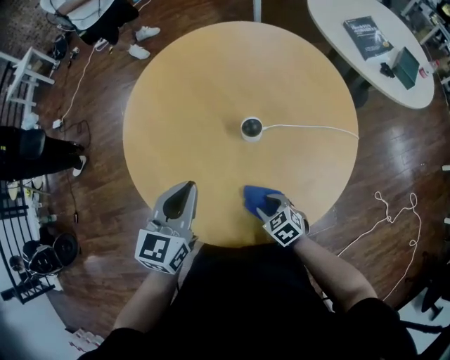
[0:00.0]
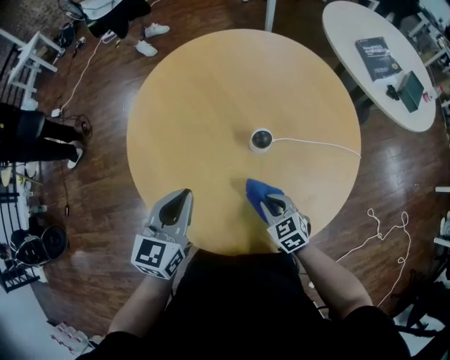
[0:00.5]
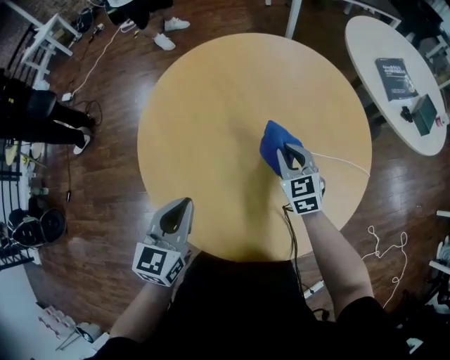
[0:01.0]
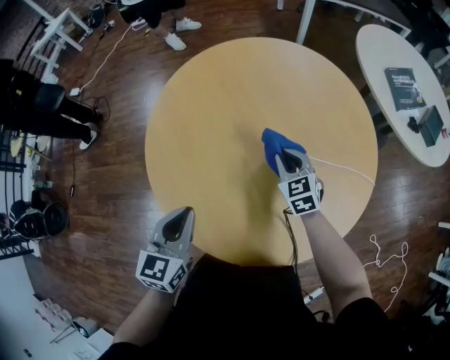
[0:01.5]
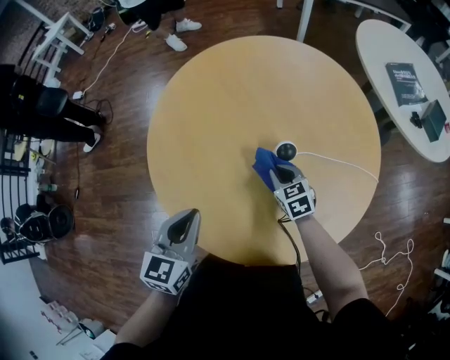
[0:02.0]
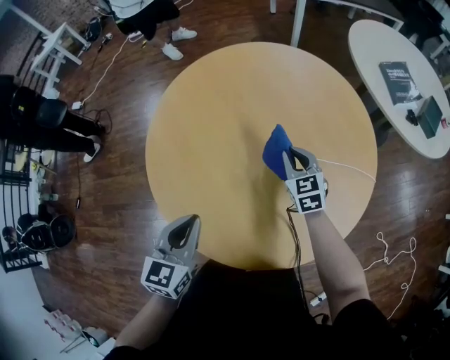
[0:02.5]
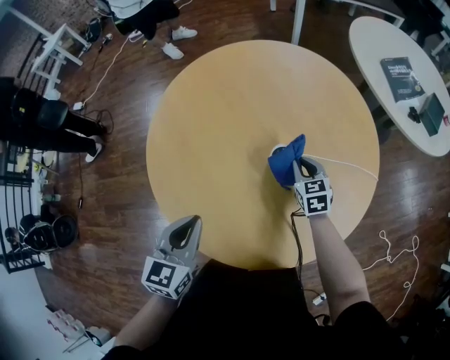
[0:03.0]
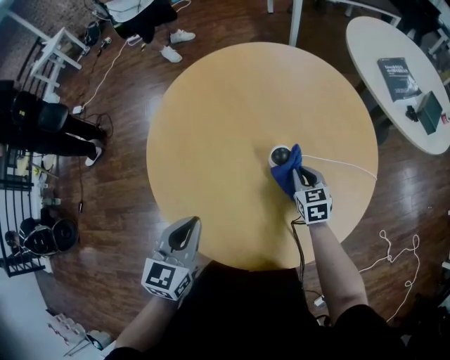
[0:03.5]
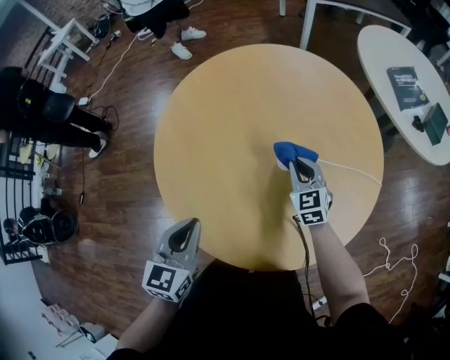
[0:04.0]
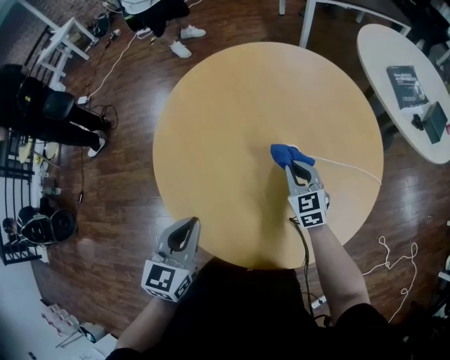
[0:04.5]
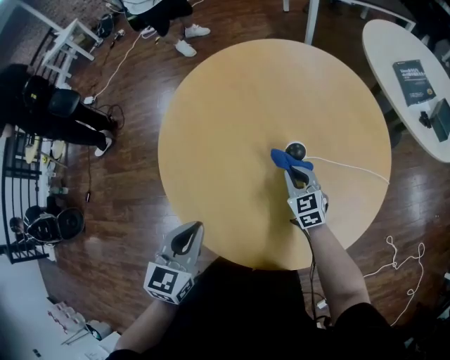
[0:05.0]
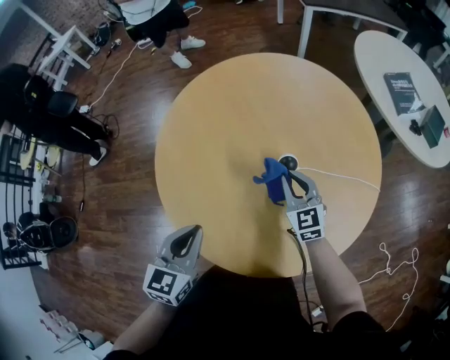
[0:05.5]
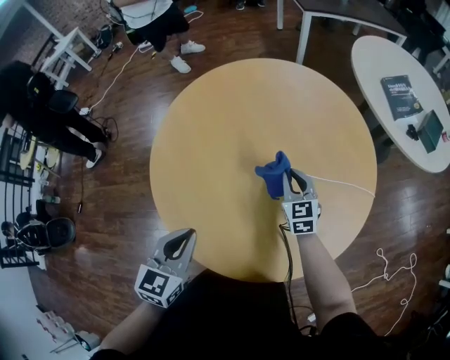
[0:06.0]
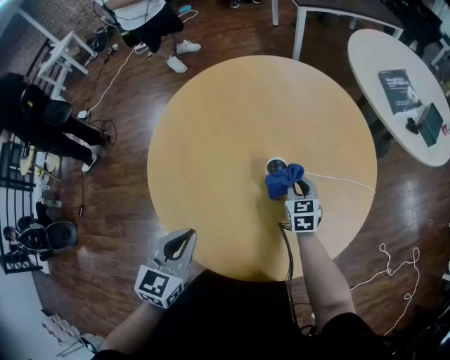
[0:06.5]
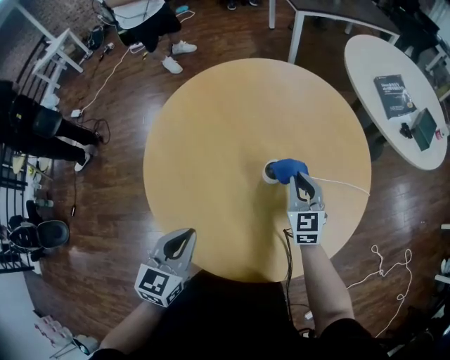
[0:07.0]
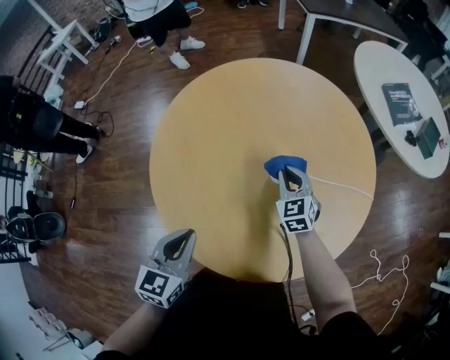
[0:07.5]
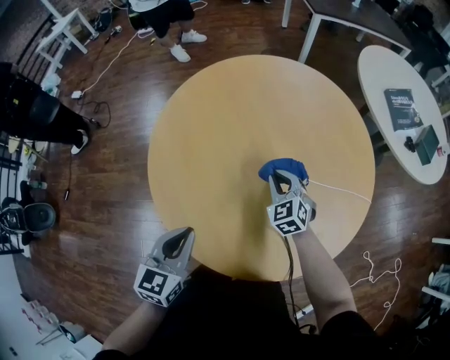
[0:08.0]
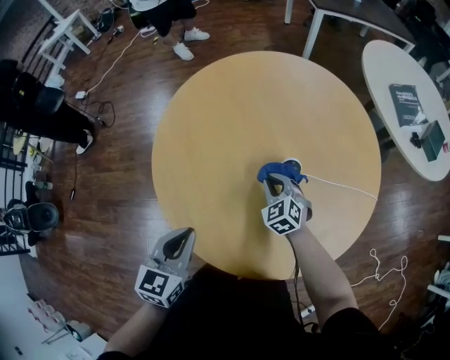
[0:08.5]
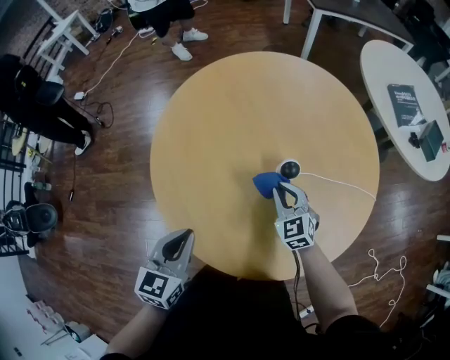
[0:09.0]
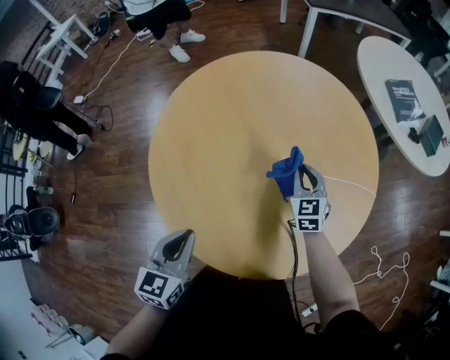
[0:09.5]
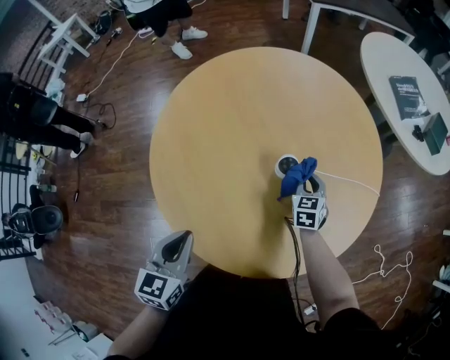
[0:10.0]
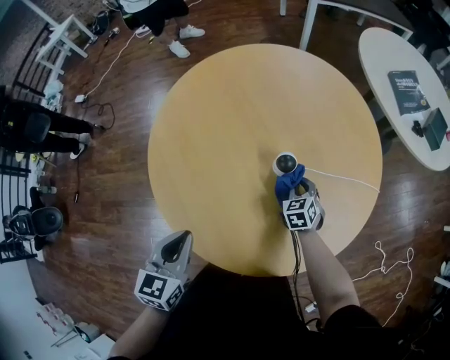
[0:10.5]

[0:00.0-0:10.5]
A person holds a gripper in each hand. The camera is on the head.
0:00.0 to 0:02.0: The left gripper travels to the left by about 5 cm. The right gripper shifts some 20 cm forward, and closes.
0:02.0 to 0:04.0: The right gripper is displaced upward by about 5 cm, and changes its angle by some 20 degrees.
0:04.0 to 0:06.5: The right gripper goes up and down, roughly 10 cm each way, reversing 2 times.
0:06.5 to 0:08.5: The right gripper moves to the left, approximately 10 cm, and turns by roughly 40 degrees.
0:08.5 to 0:10.5: The right gripper heads to the right and downward, covering about 15 cm, and changes its angle by approximately 30 degrees.

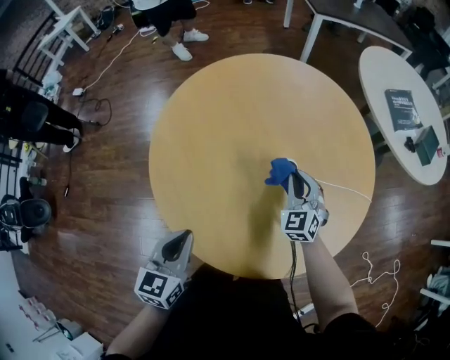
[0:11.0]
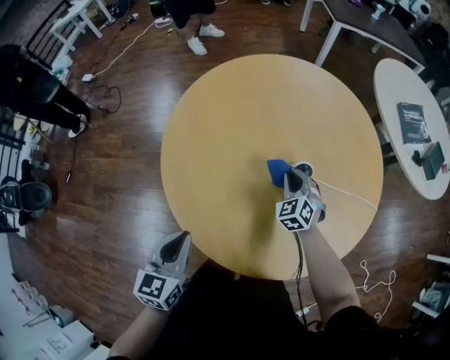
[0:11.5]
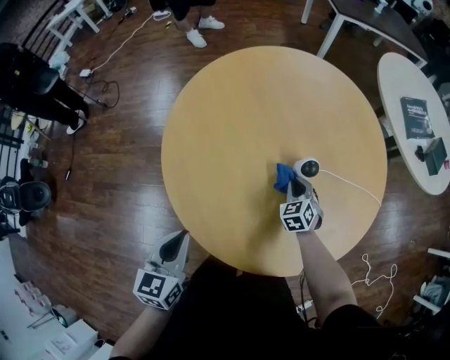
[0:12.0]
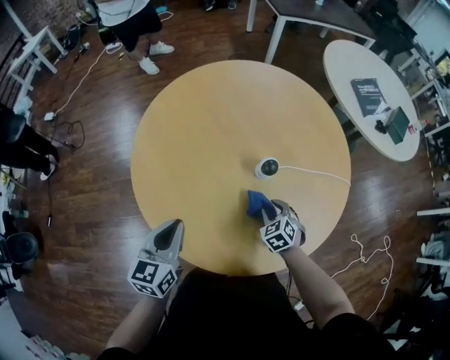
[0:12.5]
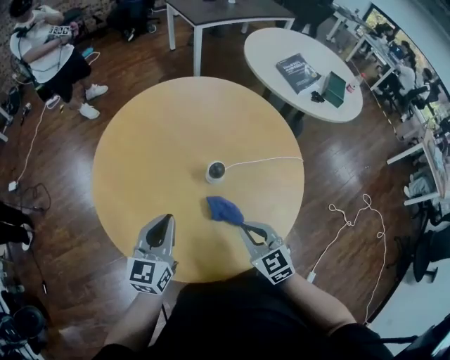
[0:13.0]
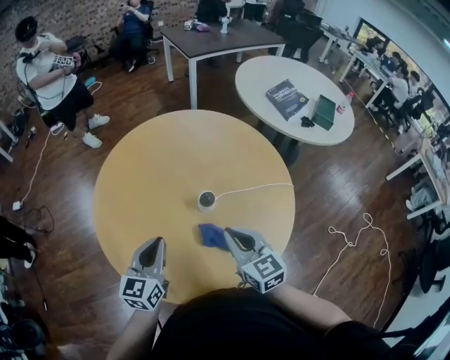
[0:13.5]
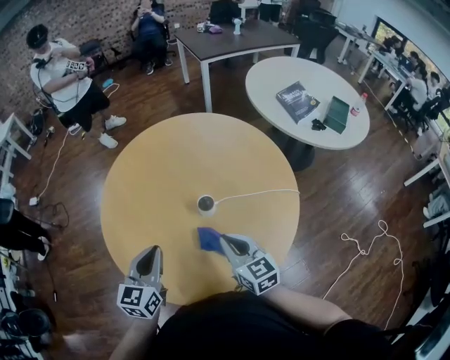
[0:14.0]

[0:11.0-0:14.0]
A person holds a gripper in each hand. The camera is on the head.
0:11.0 to 0:12.5: The right gripper is displaced downward and backward by some 15 cm, points its fingers roughly 30 degrees further downward, and opens up; the left gripper moves approximately 5 cm.
0:12.5 to 0:14.0: The right gripper goes roughly 20 cm upward, points its fingers some 40 degrees further upward, and closes its fingers. Meanwhile the left gripper goes about 10 cm to the right and forward.

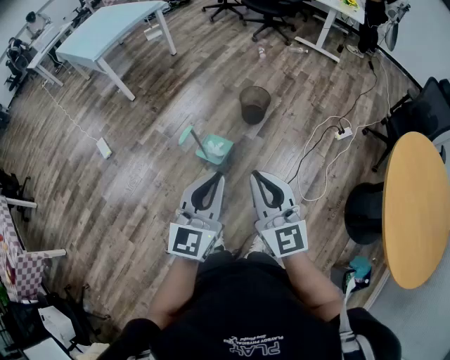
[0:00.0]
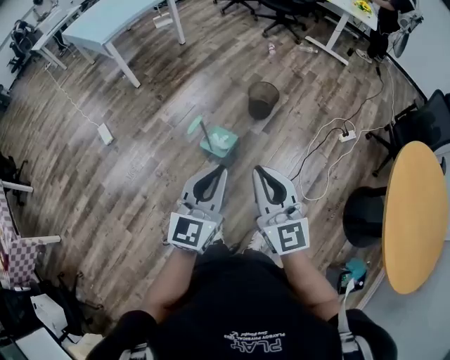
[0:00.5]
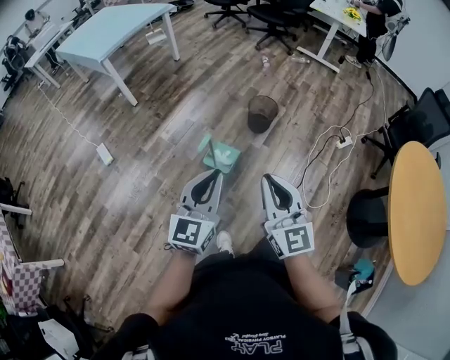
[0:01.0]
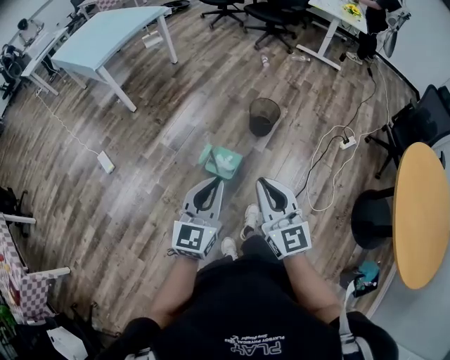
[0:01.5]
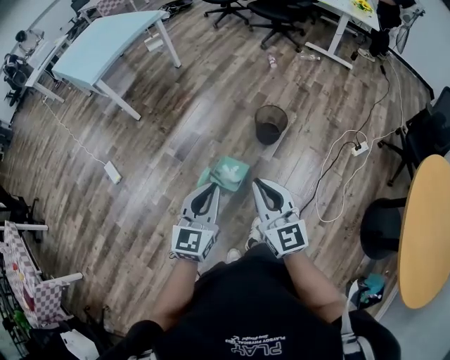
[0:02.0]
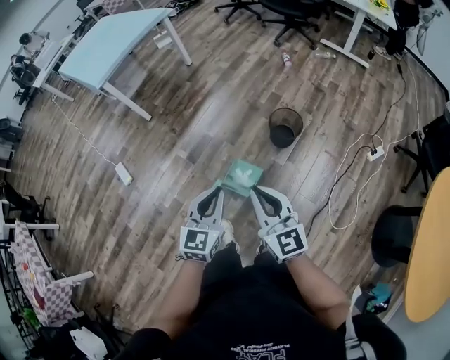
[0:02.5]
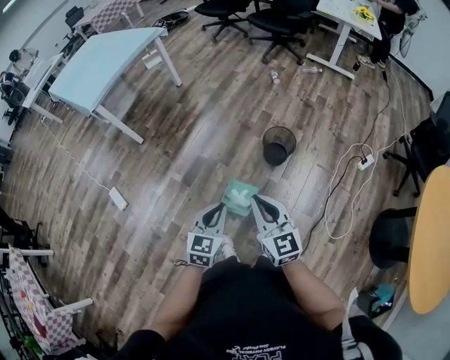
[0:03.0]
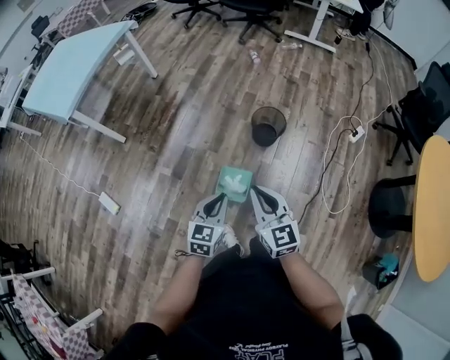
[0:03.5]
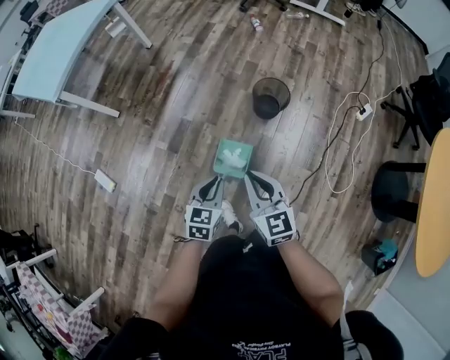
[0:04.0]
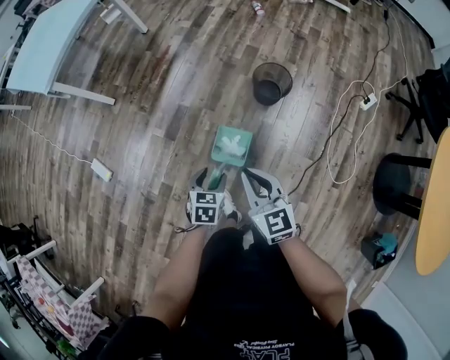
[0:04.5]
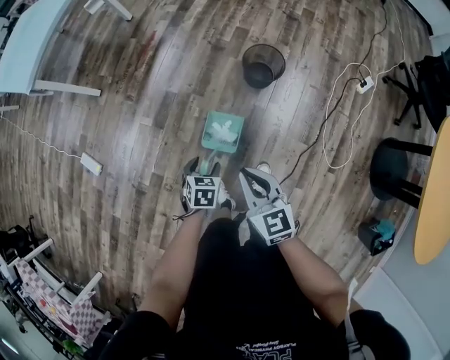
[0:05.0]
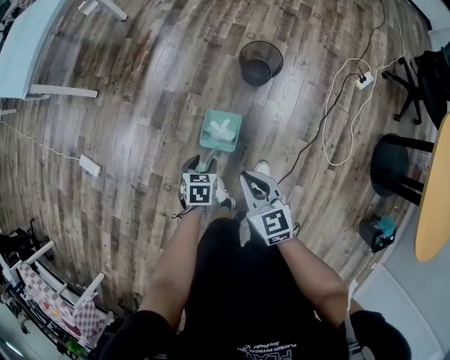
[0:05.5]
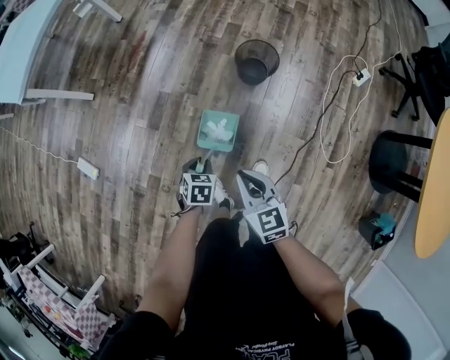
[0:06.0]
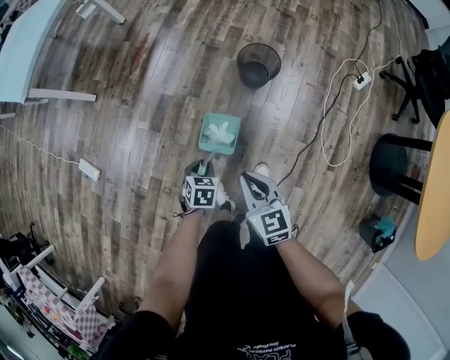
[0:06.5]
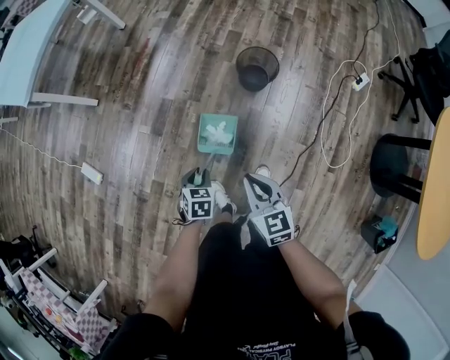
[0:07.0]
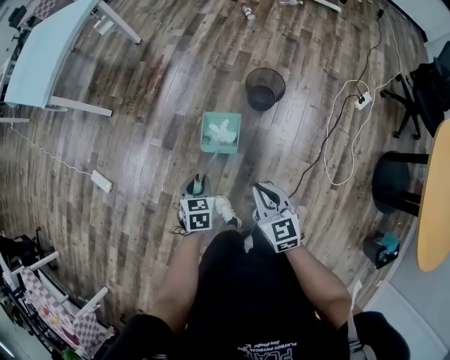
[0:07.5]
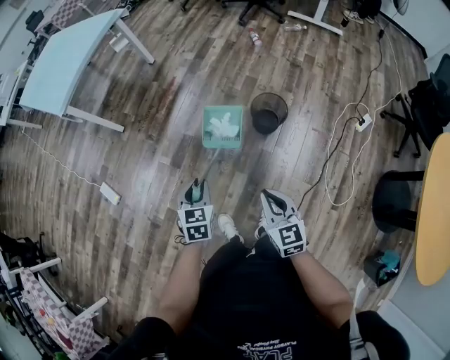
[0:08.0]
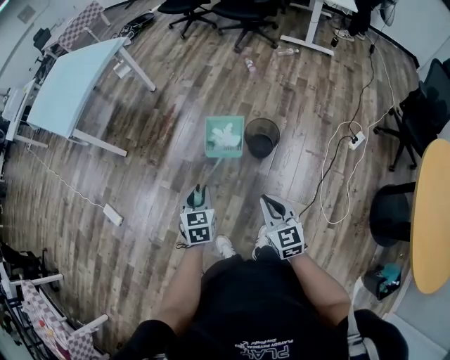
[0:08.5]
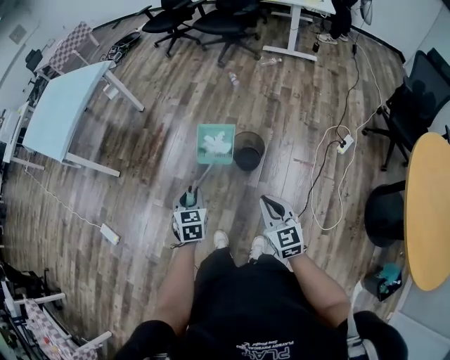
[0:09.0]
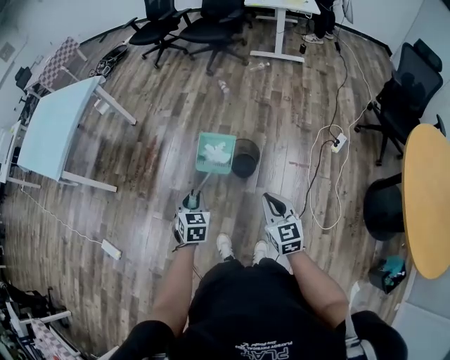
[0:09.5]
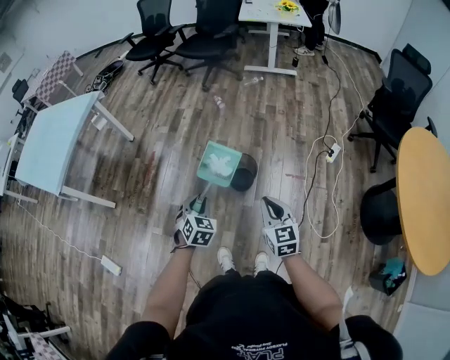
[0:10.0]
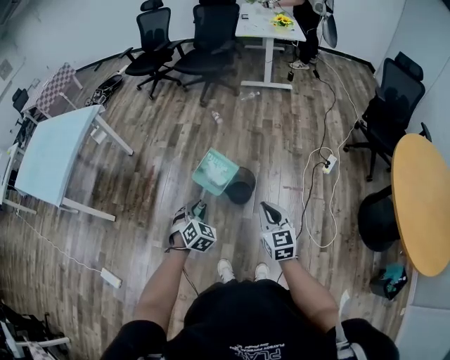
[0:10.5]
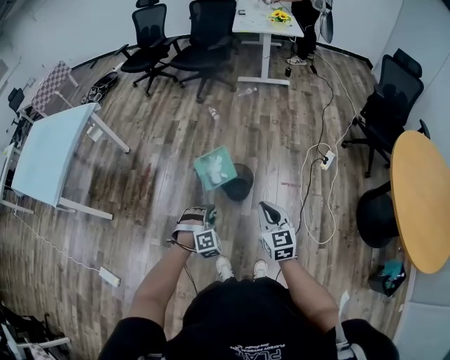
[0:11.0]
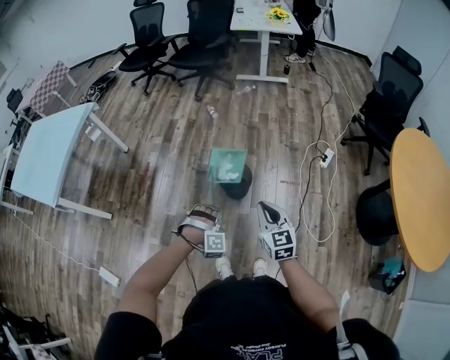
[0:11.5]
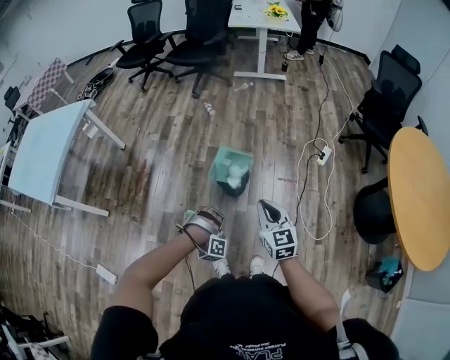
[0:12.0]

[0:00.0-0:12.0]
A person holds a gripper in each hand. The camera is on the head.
0:00.0 to 0:02.0: The left gripper shifts about 25 cm forward, to the left and downward. The right gripper moves forward, some 20 cm.
0:02.0 to 0:04.0: The right gripper goes some 20 cm downward, forward and to the left. The left gripper travels downward and forward by approximately 25 cm, and swivels roughly 30 degrees.
0:04.0 to 0:06.0: The right gripper travels downward by approximately 10 cm. Meanwhile the left gripper goes some 15 cm downward, rotates some 30 degrees, and opens and closes again.
0:06.0 to 0:08.0: The left gripper shifts approximately 20 cm upward, and swivels roughly 30 degrees. The right gripper shifts about 10 cm upward.
0:08.0 to 0:10.0: Both grippers travel together to the right and forward, about 20 cm. The left gripper swivels roughly 30 degrees. The right gripper swivels approximately 20 degrees.
0:10.0 to 0:12.0: The left gripper moves downward, backward and to the right, about 10 cm, and rotates around the line of its fingers by about 100 degrees, clockwise from behind.

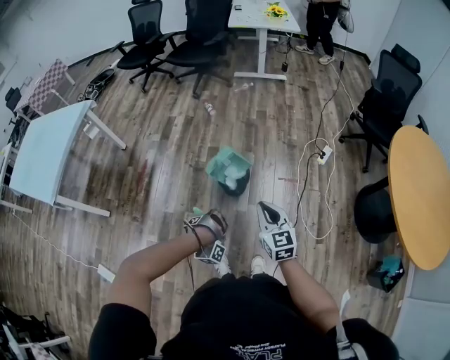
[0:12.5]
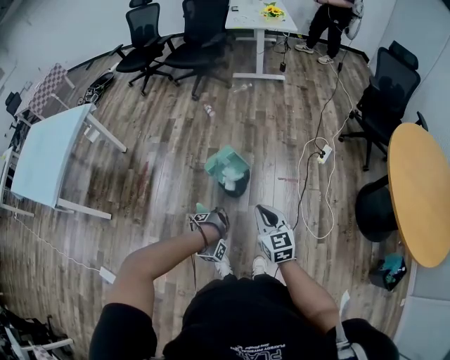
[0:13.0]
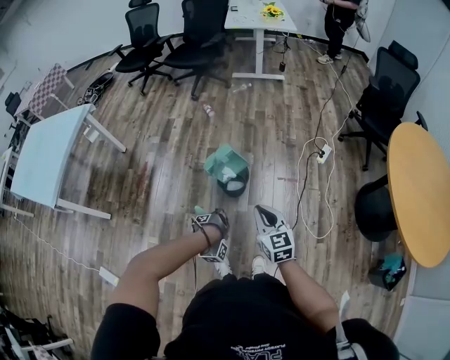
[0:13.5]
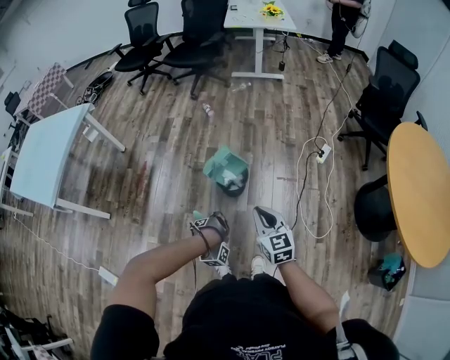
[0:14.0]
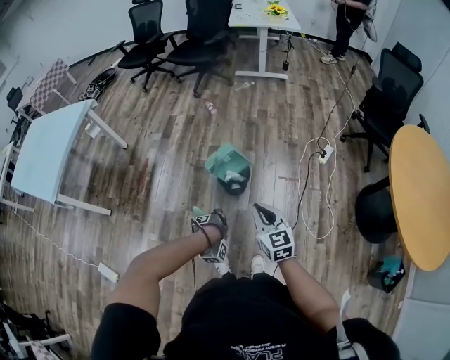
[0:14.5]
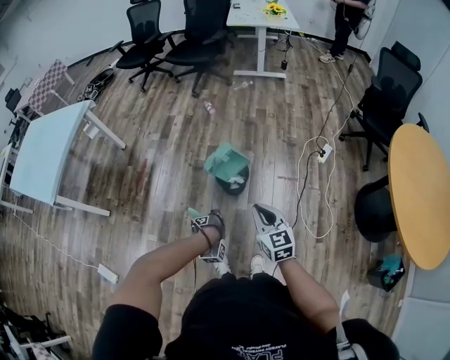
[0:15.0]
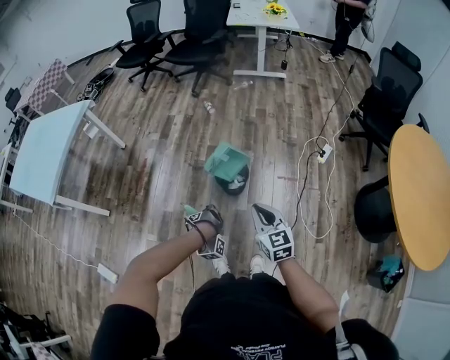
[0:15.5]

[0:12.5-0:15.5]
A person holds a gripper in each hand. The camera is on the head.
0:12.5 to 0:15.5: The grippers move only a little.
